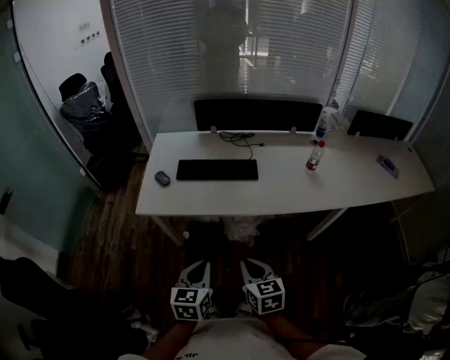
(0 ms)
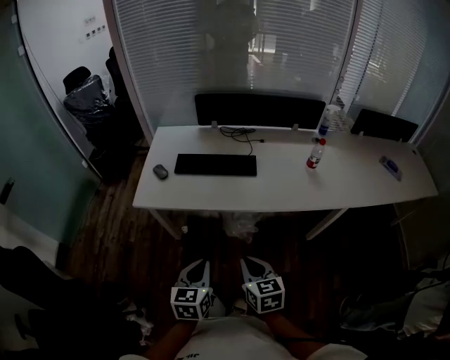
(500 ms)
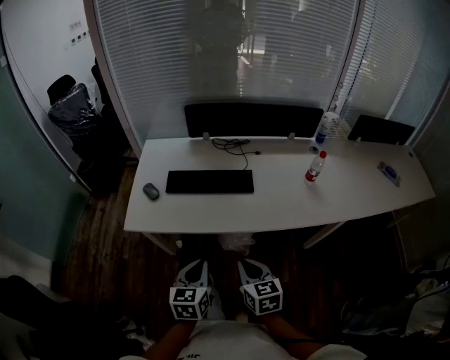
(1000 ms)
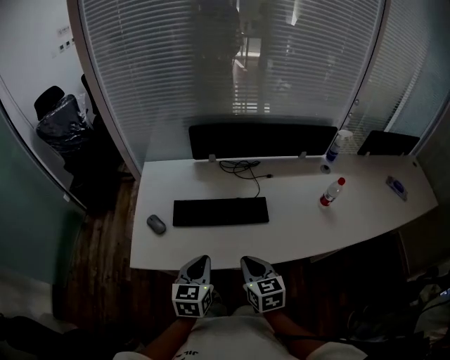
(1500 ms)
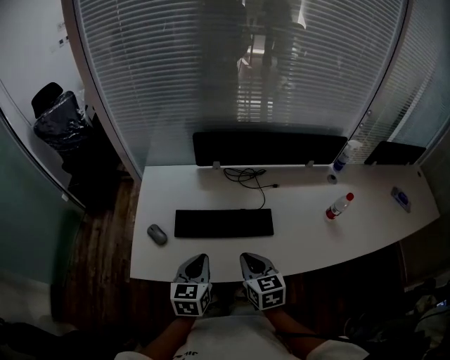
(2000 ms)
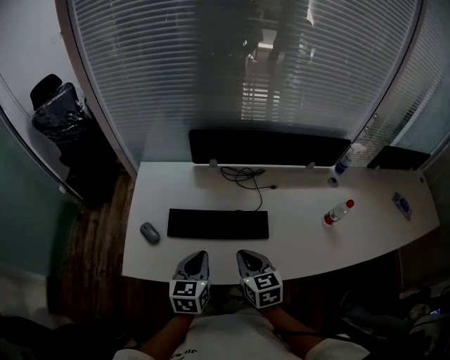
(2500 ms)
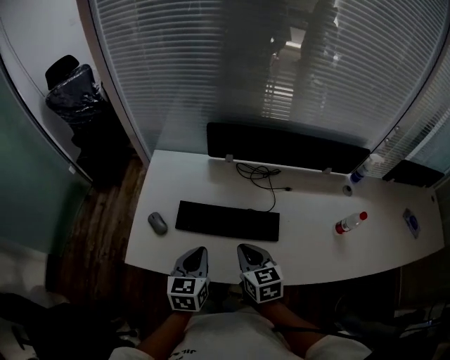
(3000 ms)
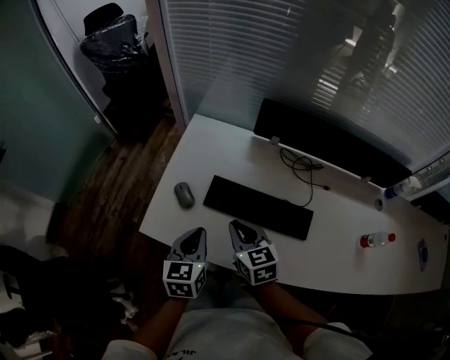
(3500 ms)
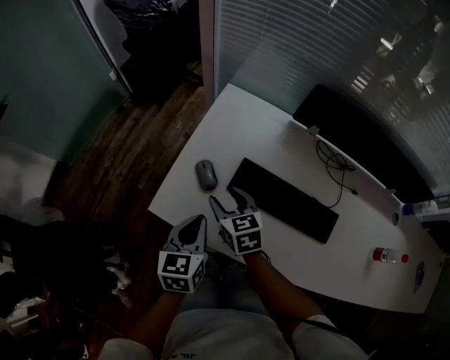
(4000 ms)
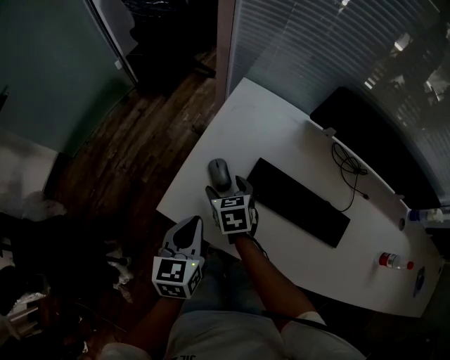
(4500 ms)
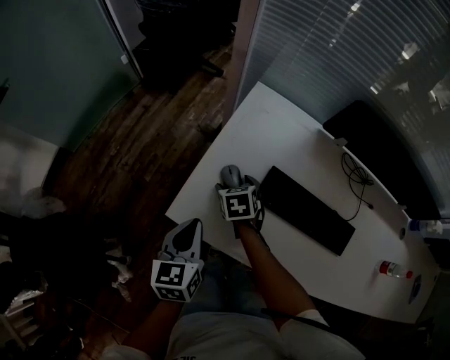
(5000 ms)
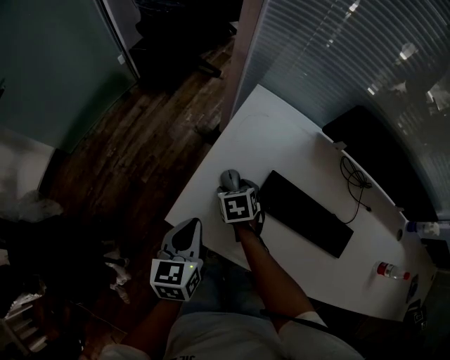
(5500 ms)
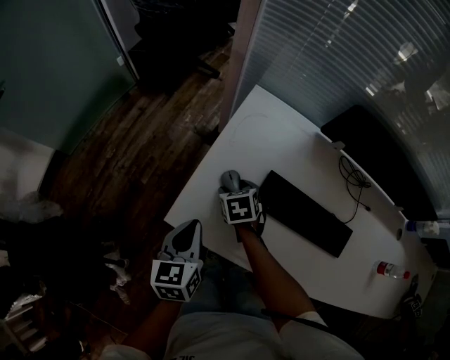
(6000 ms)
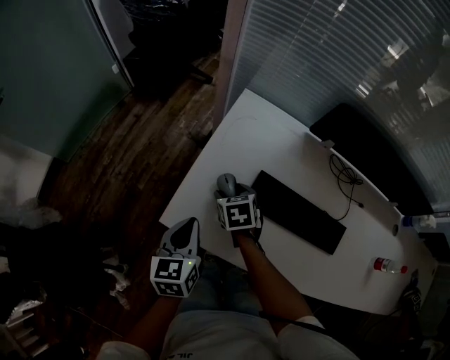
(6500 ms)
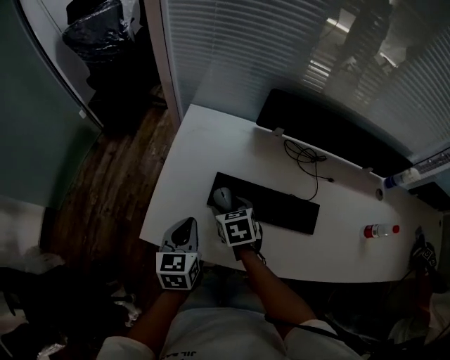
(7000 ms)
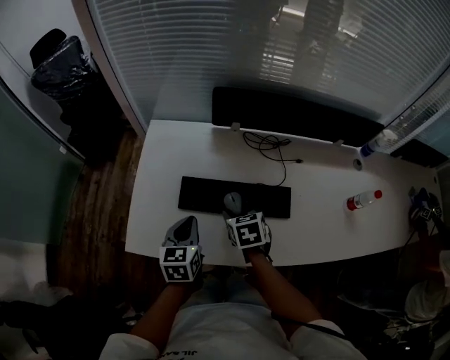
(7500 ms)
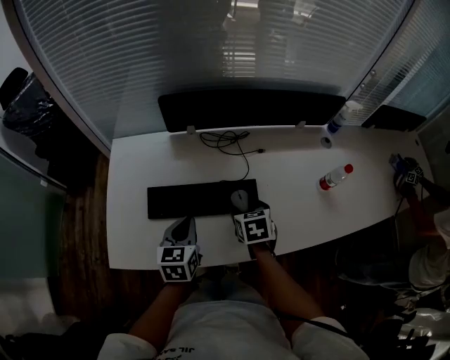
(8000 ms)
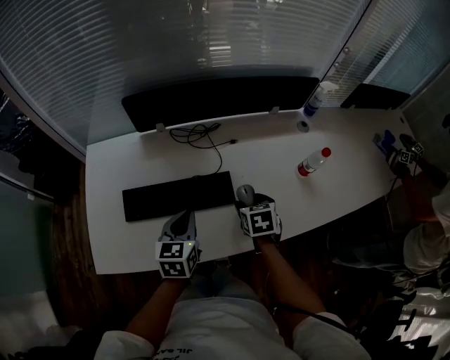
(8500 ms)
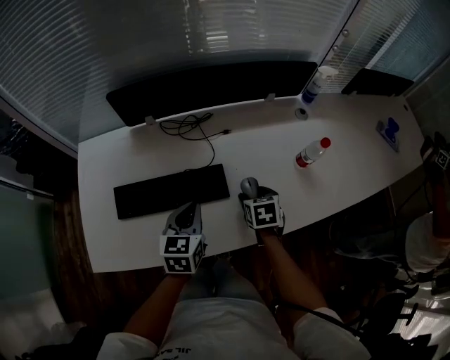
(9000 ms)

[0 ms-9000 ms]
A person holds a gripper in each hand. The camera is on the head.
0 ms to 2000 ms: The grippers both shift forward by about 35 cm.
2000 ms to 4500 ms: The right gripper moves approximately 40 cm, rotates about 40 degrees, and opens up. Meanwhile the left gripper ends up approximately 25 cm from where it was, and turns by roughly 30 degrees.
4500 ms to 7000 ms: The right gripper is displaced to the right and upward by about 15 cm; the left gripper heads to the right, covering about 5 cm.
7000 ms to 9000 ms: The right gripper shifts by approximately 50 cm, and turns by approximately 40 degrees, while the left gripper shifts by roughly 35 cm, and changes its angle by about 30 degrees.

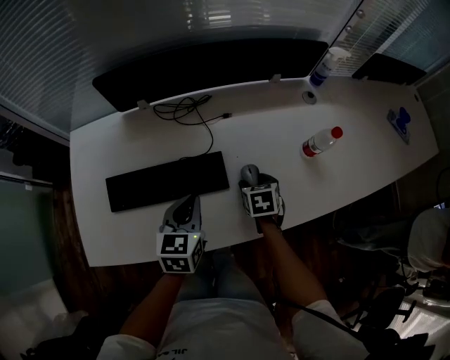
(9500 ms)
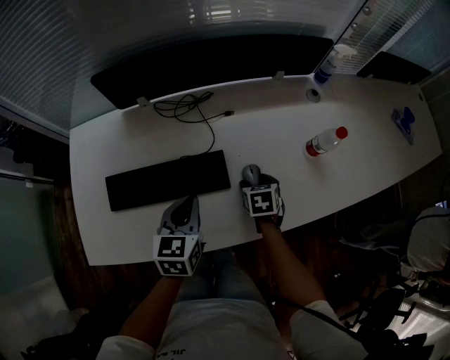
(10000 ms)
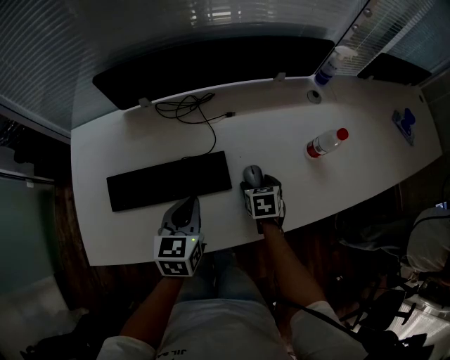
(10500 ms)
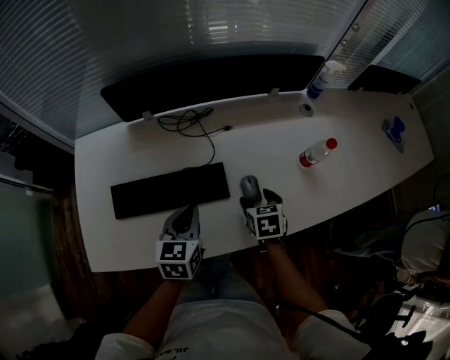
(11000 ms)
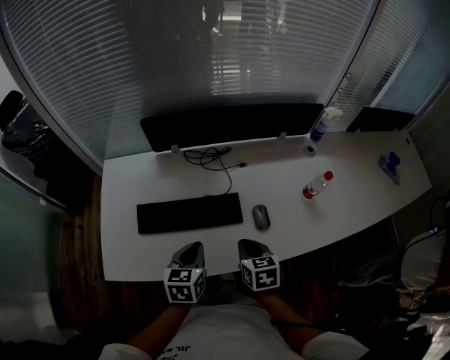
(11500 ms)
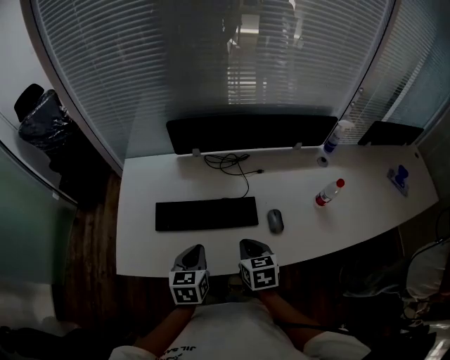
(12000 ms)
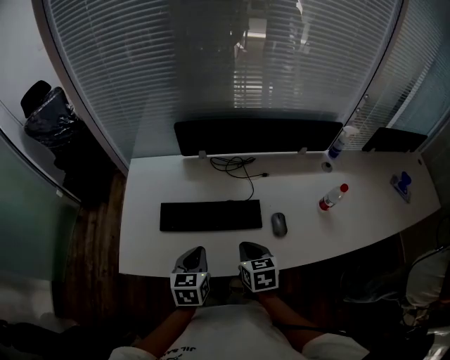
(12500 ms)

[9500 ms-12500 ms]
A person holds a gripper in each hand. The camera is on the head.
9500 ms to 11000 ms: The right gripper shifts by approximately 5 cm.
11000 ms to 12500 ms: The right gripper moves to the left, upward and backward, roughly 25 cm, and closes. Meanwhile the left gripper heads to the left and backward, covering approximately 15 cm.

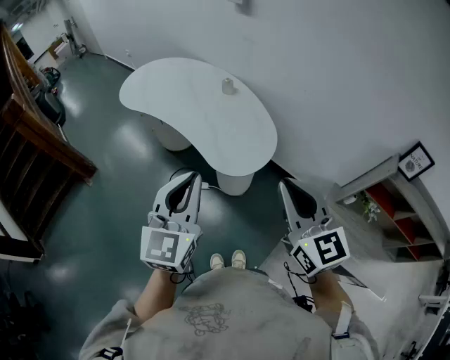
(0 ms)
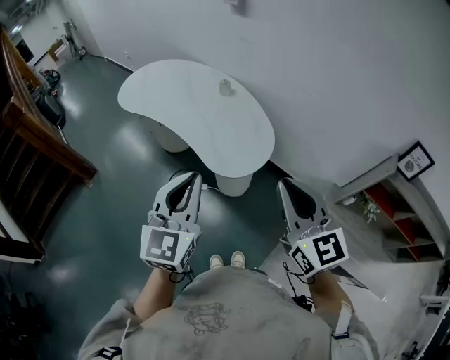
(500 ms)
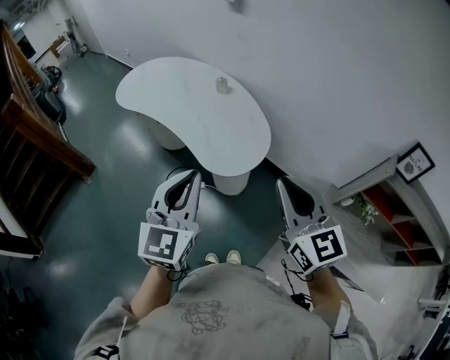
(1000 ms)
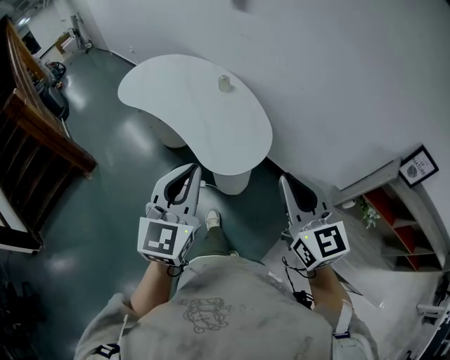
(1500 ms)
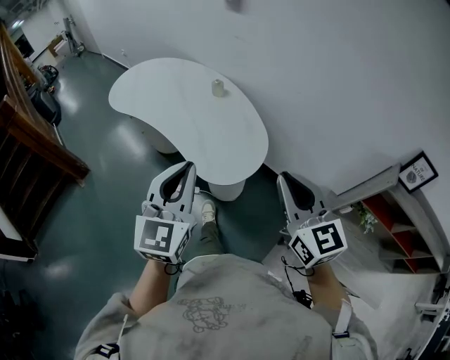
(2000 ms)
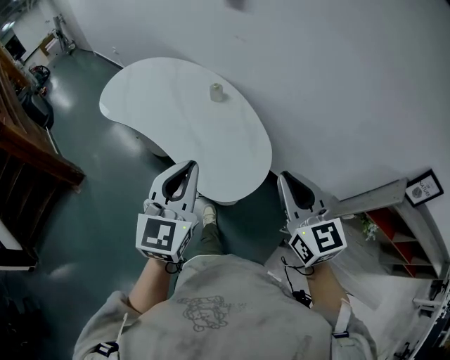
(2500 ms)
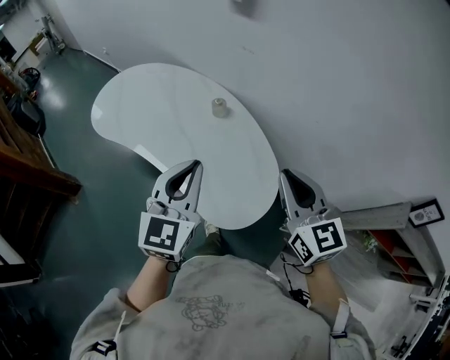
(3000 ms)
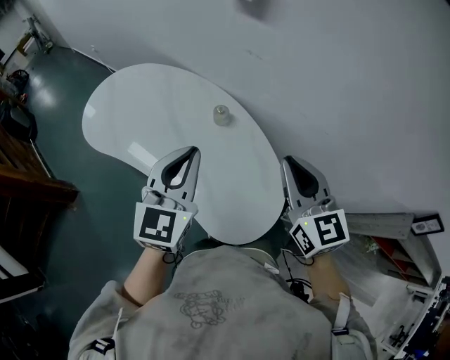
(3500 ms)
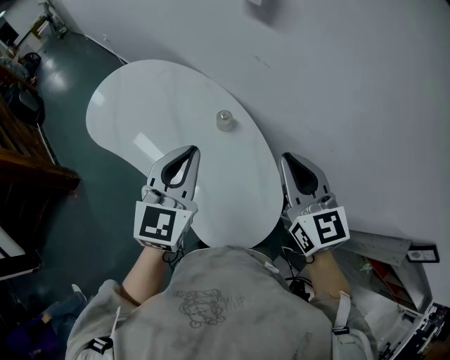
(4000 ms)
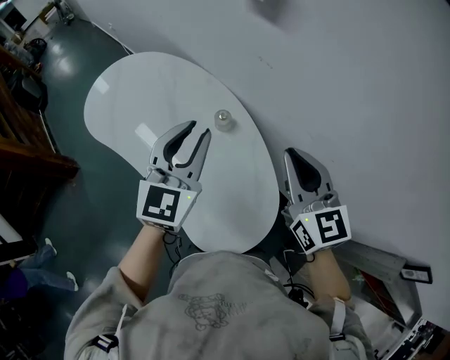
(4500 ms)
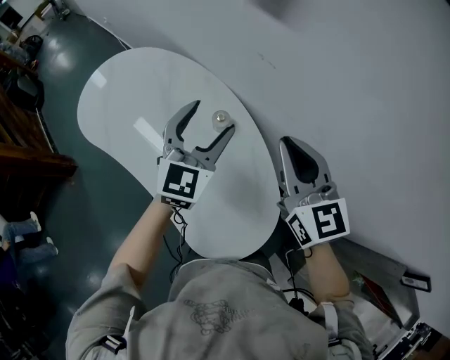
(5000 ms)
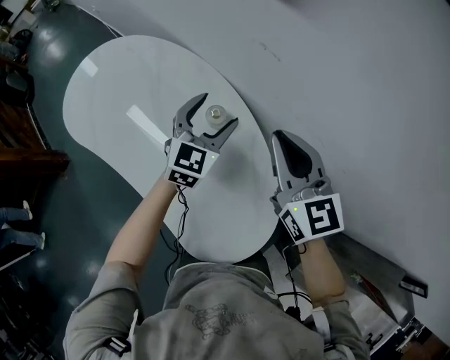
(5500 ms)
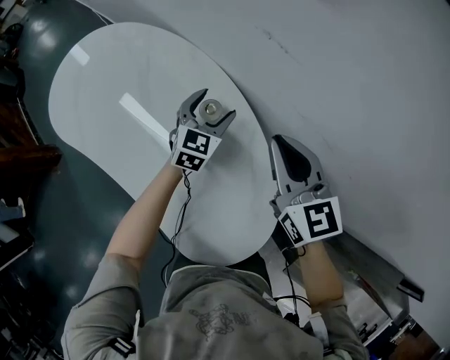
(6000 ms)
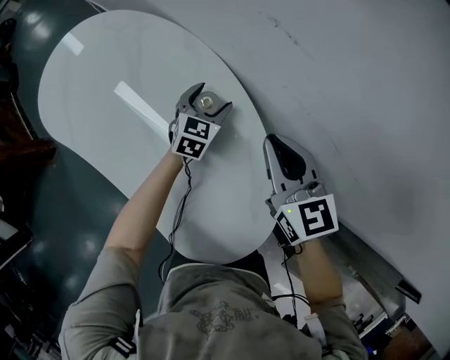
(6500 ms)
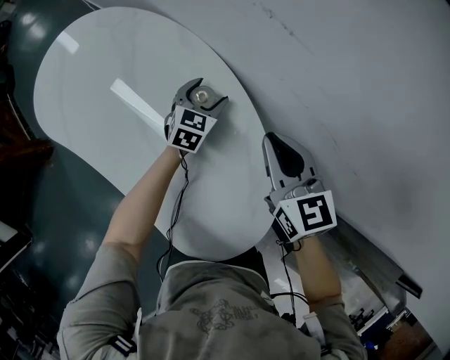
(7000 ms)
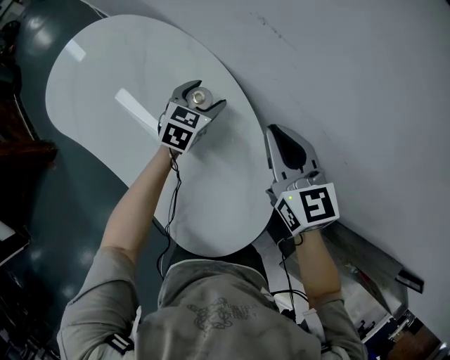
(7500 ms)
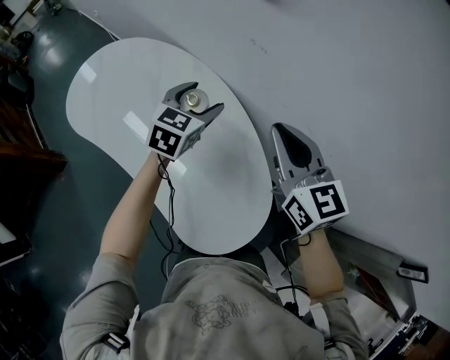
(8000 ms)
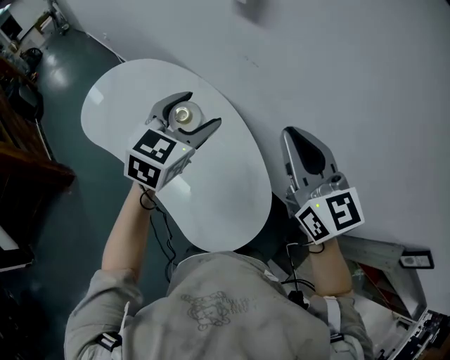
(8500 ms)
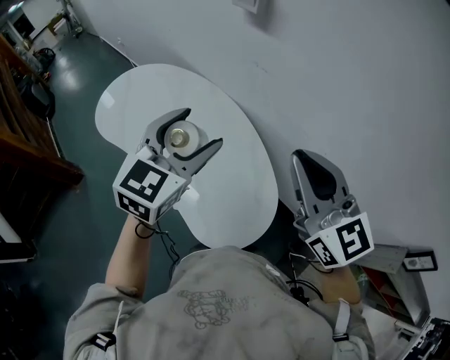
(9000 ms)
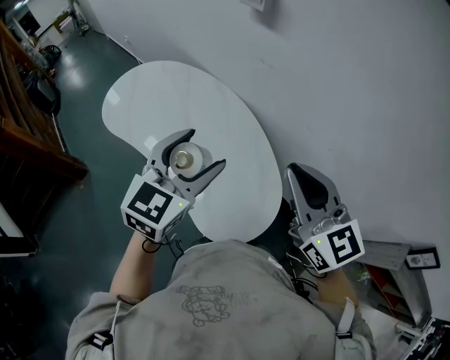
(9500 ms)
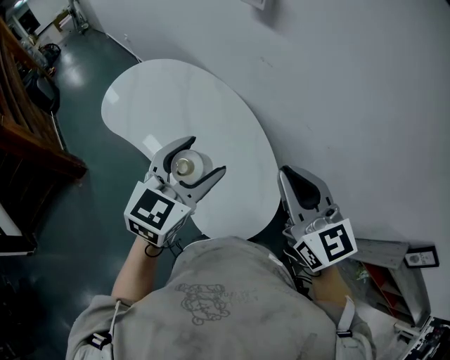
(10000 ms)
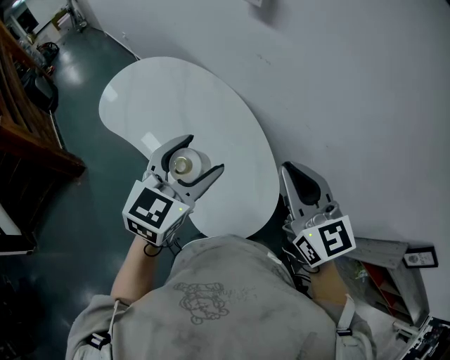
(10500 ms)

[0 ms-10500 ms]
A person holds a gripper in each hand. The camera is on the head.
0 ms to 2000 ms: The grippers both shift forward and to the right by roughly 10 cm.
2000 ms to 4000 ms: Both grippers are carried forward, about 40 cm.
4000 ms to 6500 ms: The left gripper heads downward and forward, covering approximately 50 cm, turns by some 20 degrees, and opens. The right gripper is displaced downward and forward by some 25 cm.
6500 ms to 8500 ms: Both grippers move upward and backward, about 35 cm.
8500 ms to 10500 ms: Both grippers move backward, approximately 15 cm.

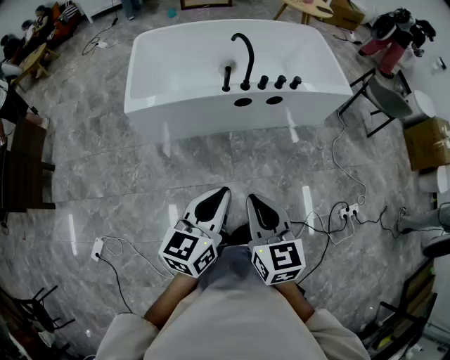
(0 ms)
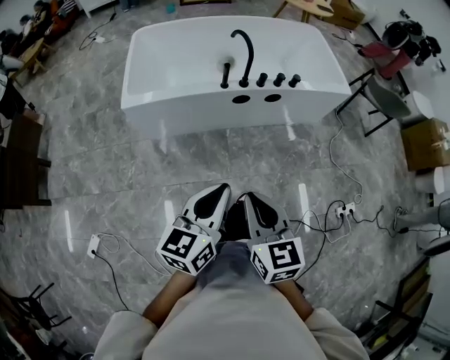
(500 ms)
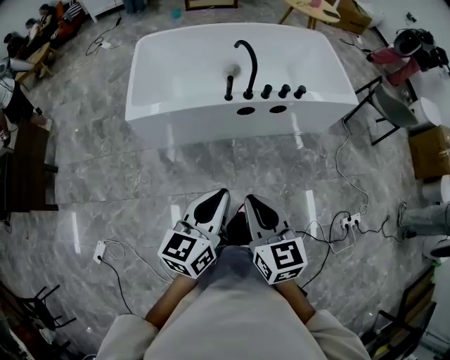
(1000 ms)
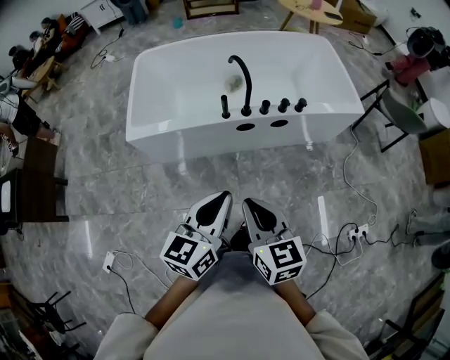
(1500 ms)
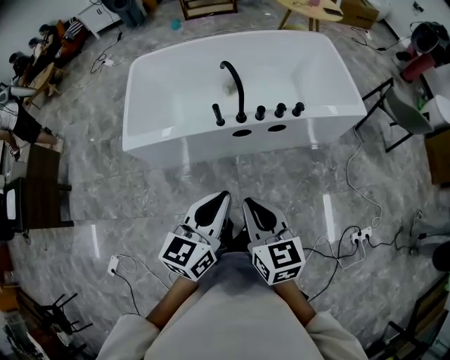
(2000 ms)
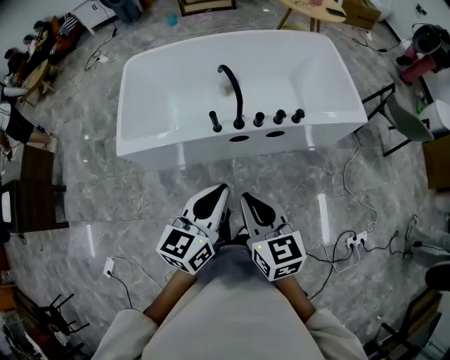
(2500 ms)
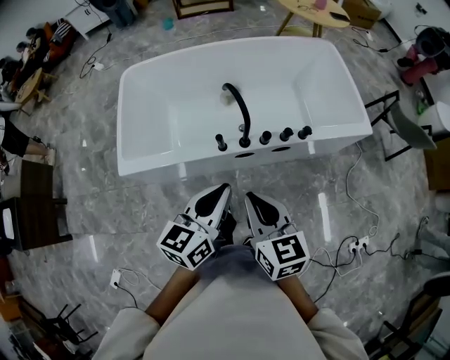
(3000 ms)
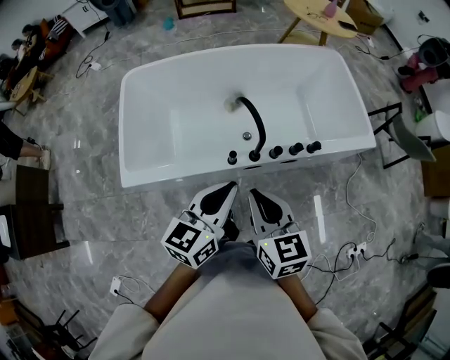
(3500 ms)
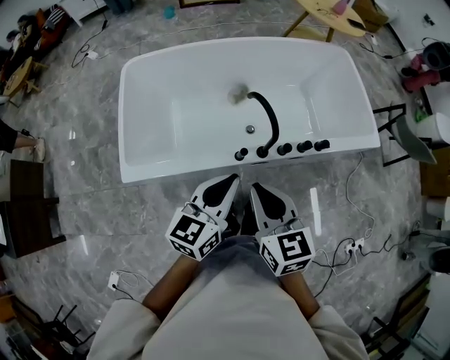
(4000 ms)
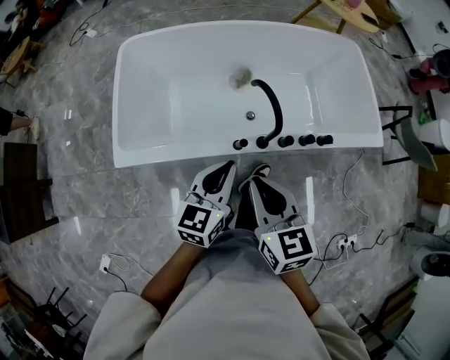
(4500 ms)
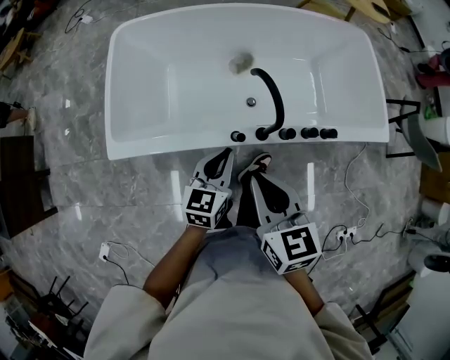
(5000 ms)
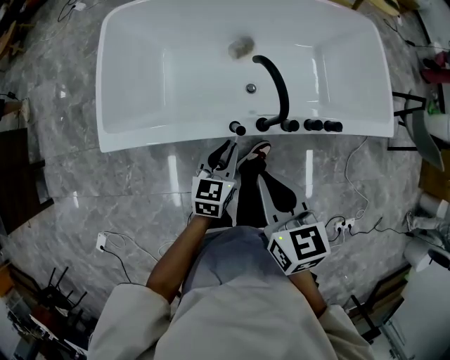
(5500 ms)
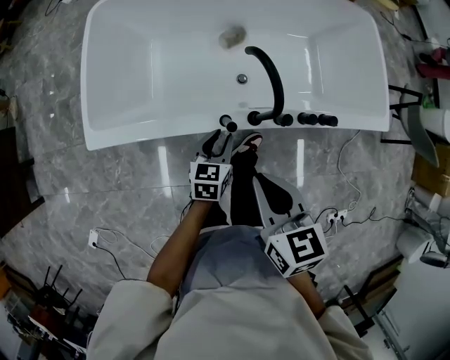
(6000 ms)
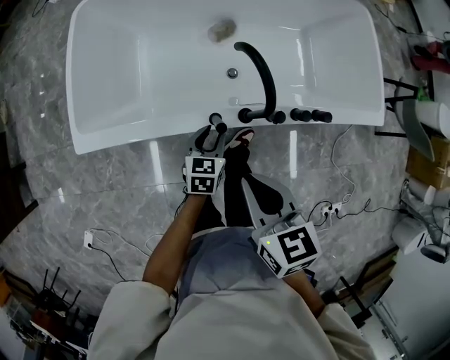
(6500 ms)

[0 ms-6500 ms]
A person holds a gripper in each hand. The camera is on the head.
0 ms to 2000 ms: Both grippers travel together forward, approximately 20 cm.
2000 ms to 4500 ms: The grippers both shift forward and to the left by roughly 30 cm.
4500 ms to 6500 ms: The right gripper goes some 10 cm downward. Meanwhile the left gripper travels downward by some 25 cm, changes its angle by roughly 20 degrees, and opens its fingers.
